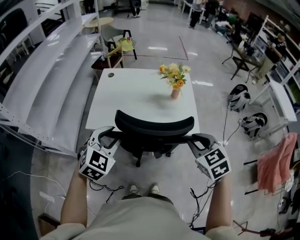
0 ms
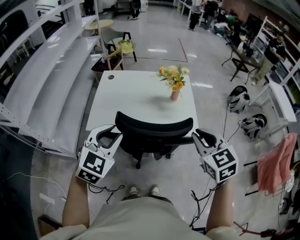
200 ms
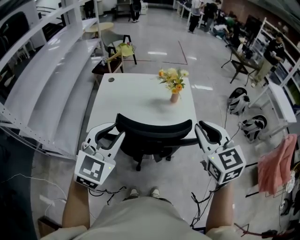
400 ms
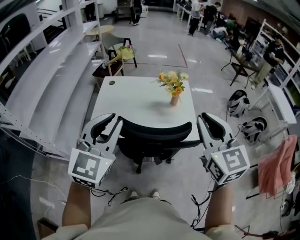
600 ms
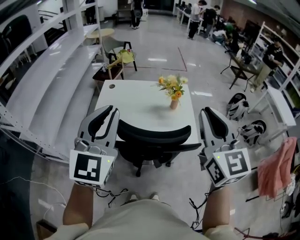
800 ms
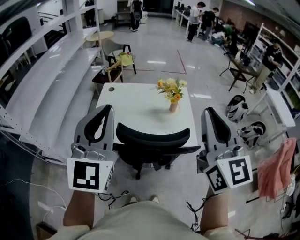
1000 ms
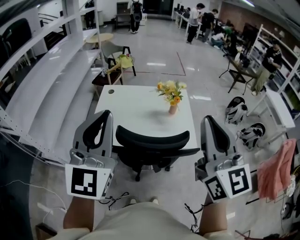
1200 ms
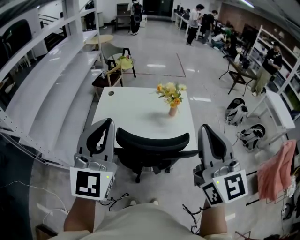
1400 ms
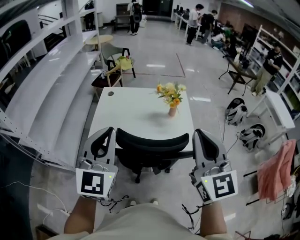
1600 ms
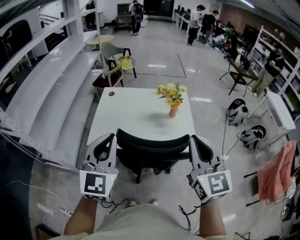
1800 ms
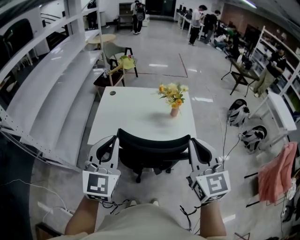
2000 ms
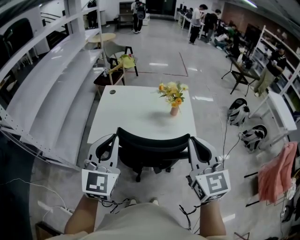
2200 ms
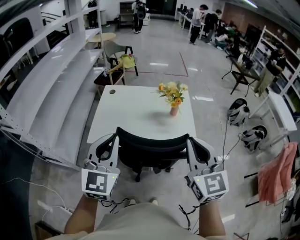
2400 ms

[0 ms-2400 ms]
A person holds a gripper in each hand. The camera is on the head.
0 ms to 1200 ms: The grippers both shift upward by roughly 25 cm. The right gripper points its fingers about 50 degrees further upward. The left gripper tips its fingers upward by about 40 degrees, and closes.
1200 ms to 2400 ms: Both grippers move downward, approximately 10 cm.

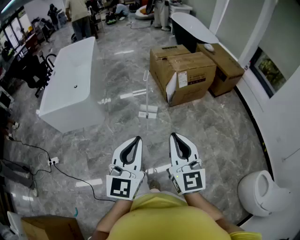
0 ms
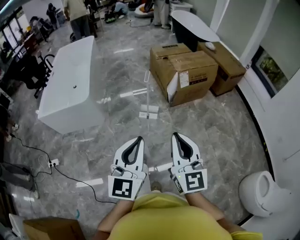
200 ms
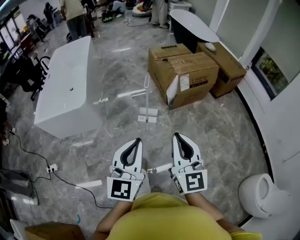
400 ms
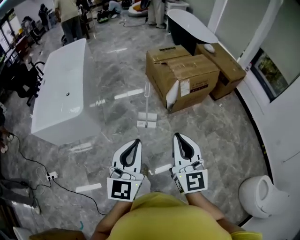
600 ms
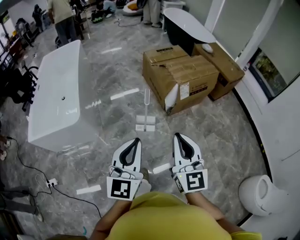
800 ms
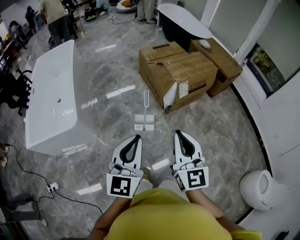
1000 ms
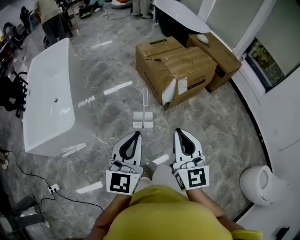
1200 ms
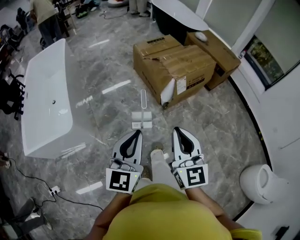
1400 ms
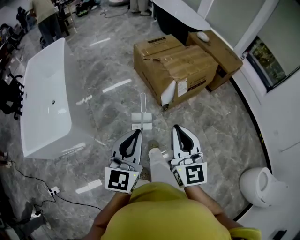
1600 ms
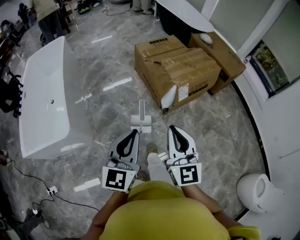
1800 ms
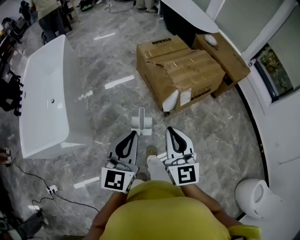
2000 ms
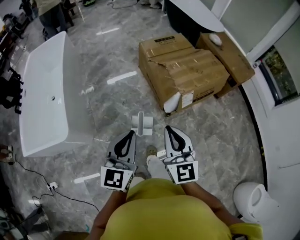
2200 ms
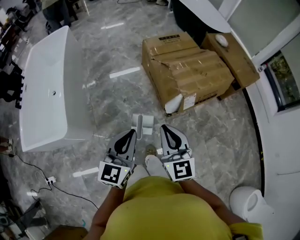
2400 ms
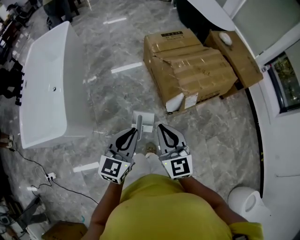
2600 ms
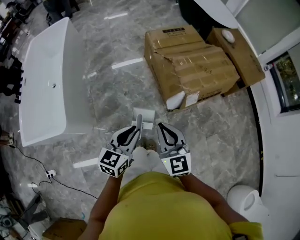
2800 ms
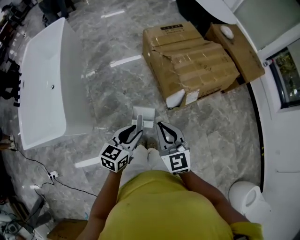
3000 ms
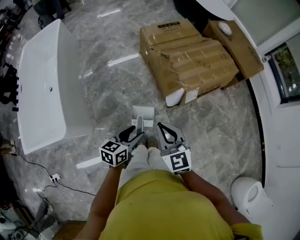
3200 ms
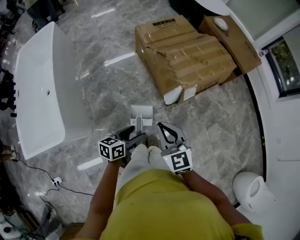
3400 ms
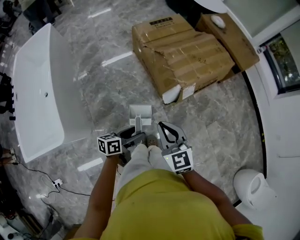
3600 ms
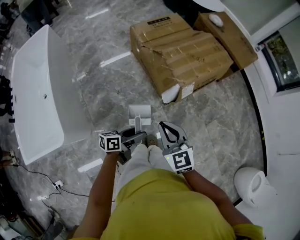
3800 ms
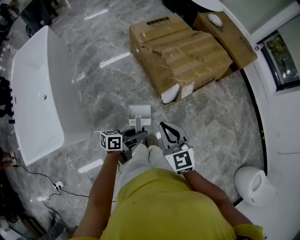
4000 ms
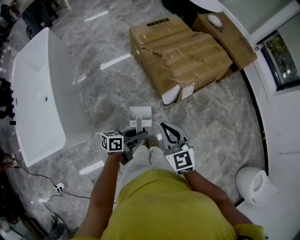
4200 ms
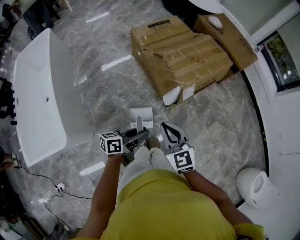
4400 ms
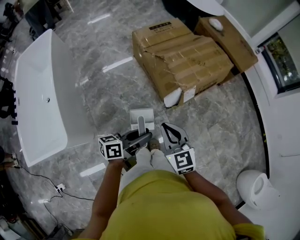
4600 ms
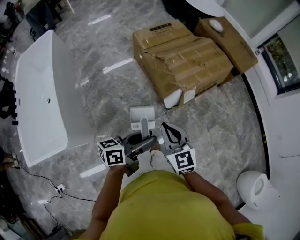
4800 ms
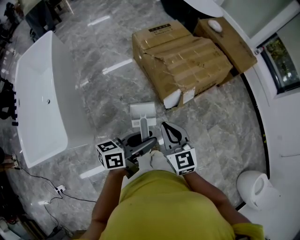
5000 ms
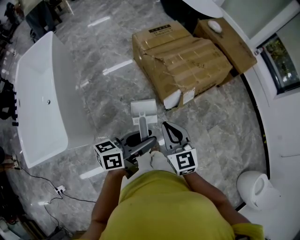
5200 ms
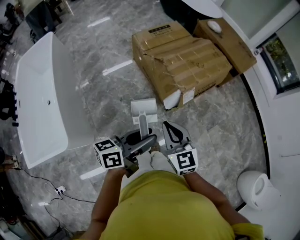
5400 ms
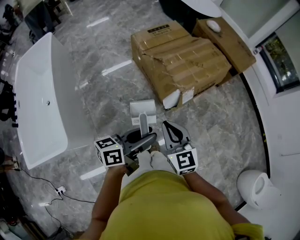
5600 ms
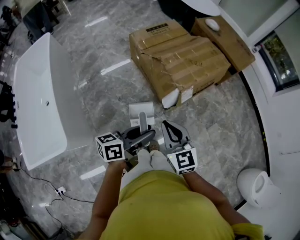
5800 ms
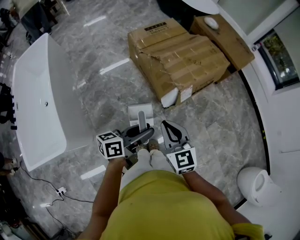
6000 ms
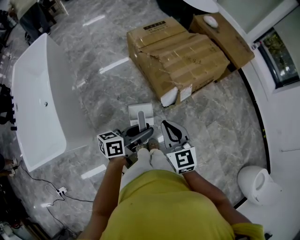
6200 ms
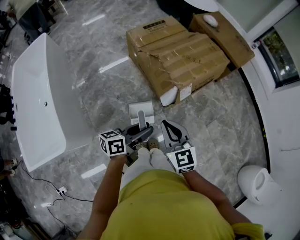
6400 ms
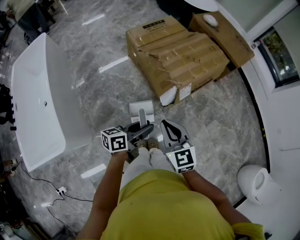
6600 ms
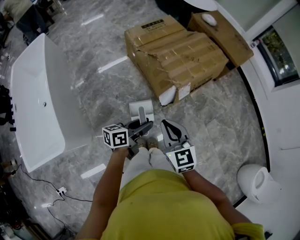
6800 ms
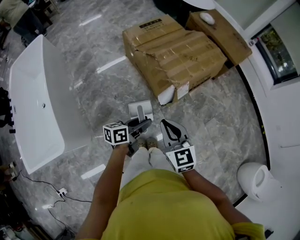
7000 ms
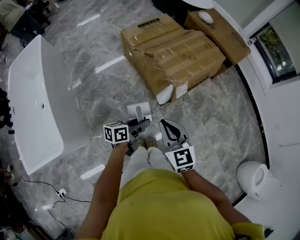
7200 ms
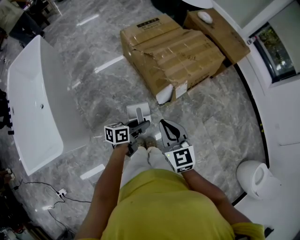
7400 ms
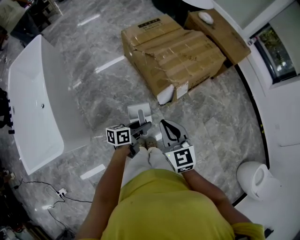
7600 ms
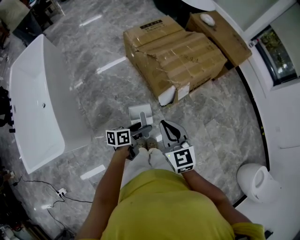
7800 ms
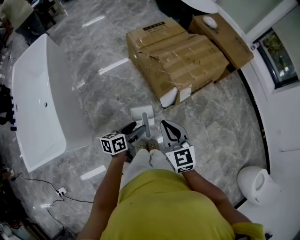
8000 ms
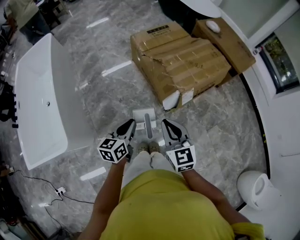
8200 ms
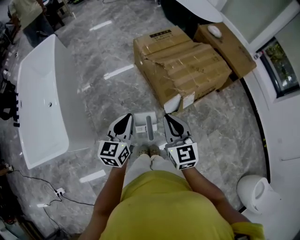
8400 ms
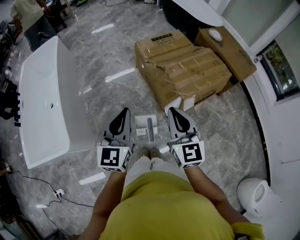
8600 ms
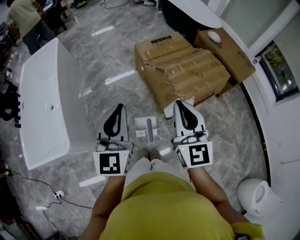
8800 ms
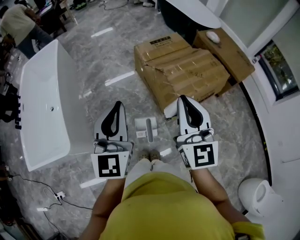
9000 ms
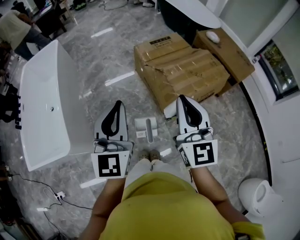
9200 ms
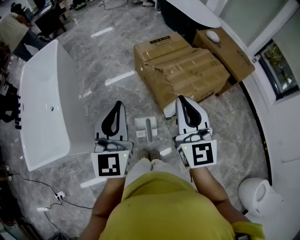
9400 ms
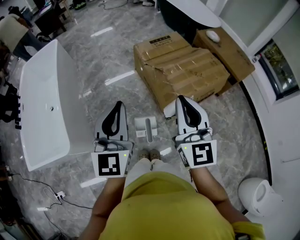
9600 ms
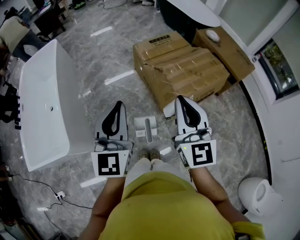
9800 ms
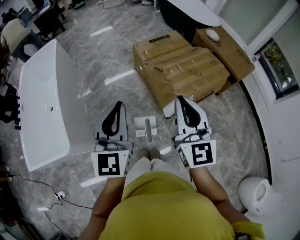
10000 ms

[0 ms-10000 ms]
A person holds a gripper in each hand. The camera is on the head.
0 ms to 1400 ms: Both grippers travel together forward, some 35 cm.
1400 ms to 2800 ms: The two grippers go some 30 cm forward and downward. The left gripper rotates roughly 30 degrees, while the right gripper turns by some 20 degrees.
2800 ms to 4200 ms: The left gripper moves downward, some 10 cm, swivels approximately 50 degrees, and opens, then closes once more.
4200 ms to 5800 ms: The left gripper shifts approximately 15 cm upward.
5800 ms to 7200 ms: The left gripper travels downward by some 15 cm.
7200 ms to 8600 ms: The left gripper goes some 25 cm upward and to the left, changes its angle by about 70 degrees, and closes. The right gripper goes some 10 cm upward.
8600 ms to 10000 ms: The two grippers go about 10 cm upward.

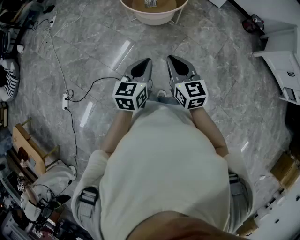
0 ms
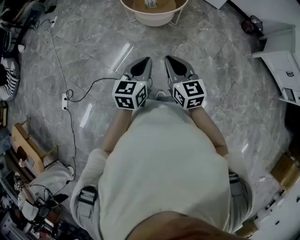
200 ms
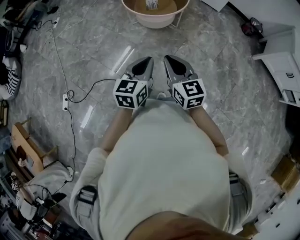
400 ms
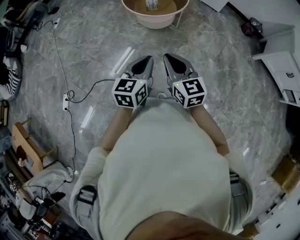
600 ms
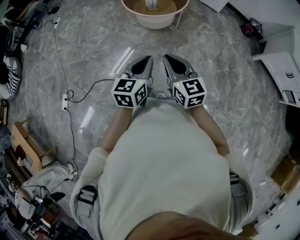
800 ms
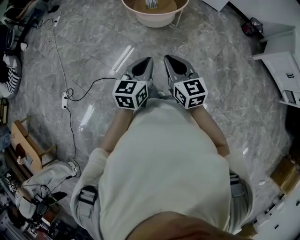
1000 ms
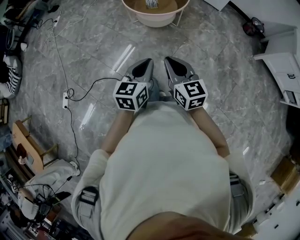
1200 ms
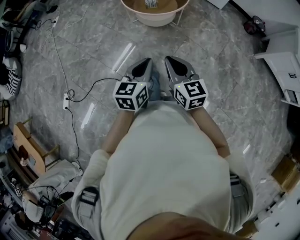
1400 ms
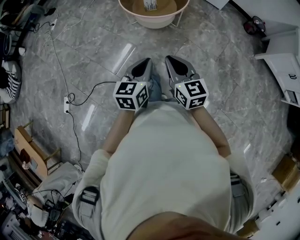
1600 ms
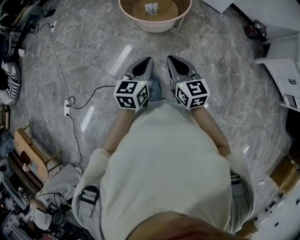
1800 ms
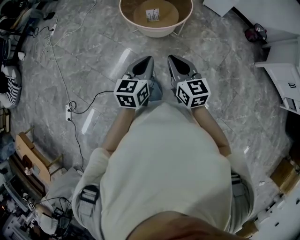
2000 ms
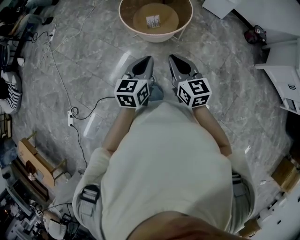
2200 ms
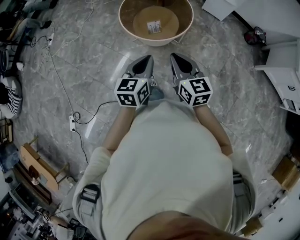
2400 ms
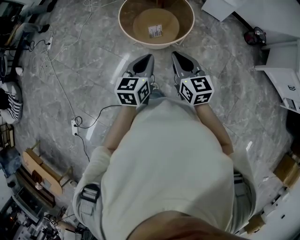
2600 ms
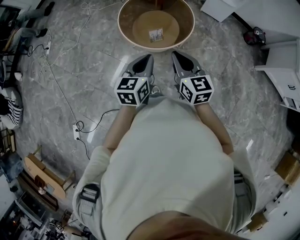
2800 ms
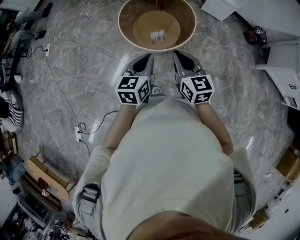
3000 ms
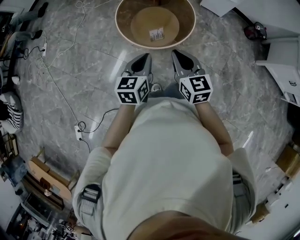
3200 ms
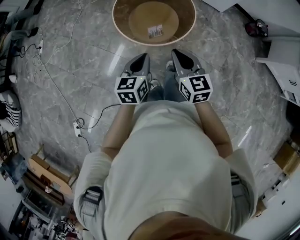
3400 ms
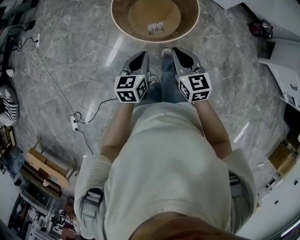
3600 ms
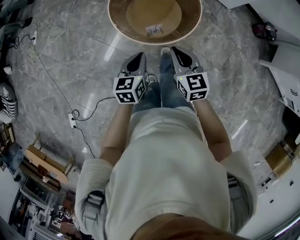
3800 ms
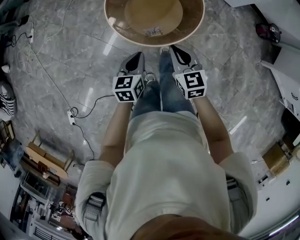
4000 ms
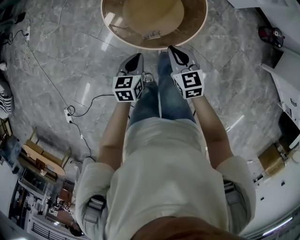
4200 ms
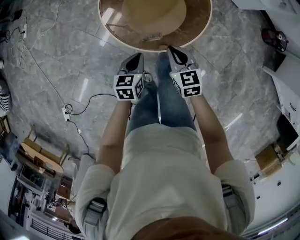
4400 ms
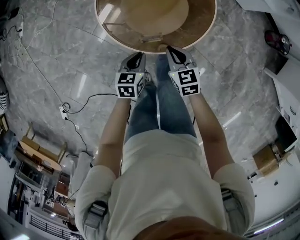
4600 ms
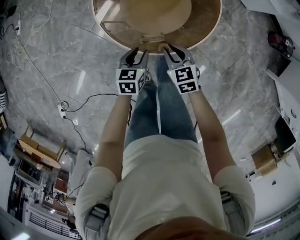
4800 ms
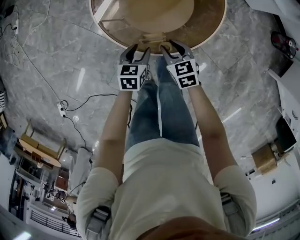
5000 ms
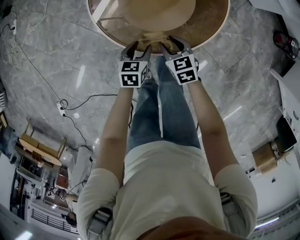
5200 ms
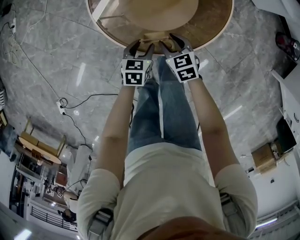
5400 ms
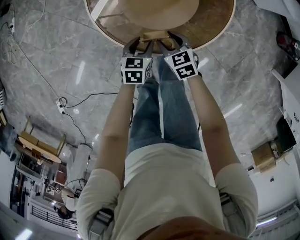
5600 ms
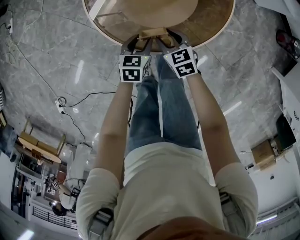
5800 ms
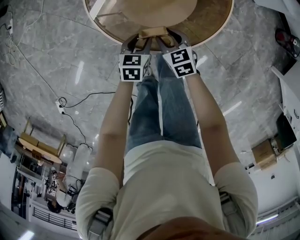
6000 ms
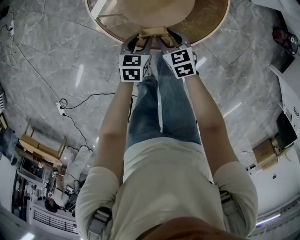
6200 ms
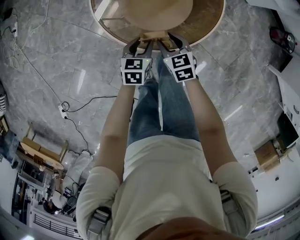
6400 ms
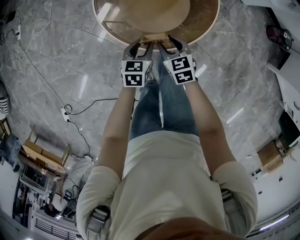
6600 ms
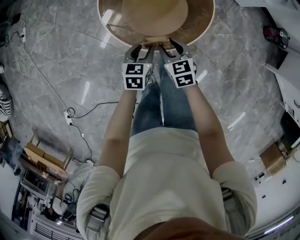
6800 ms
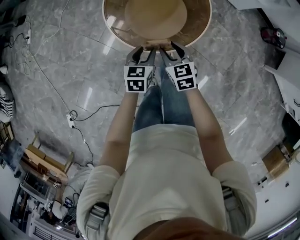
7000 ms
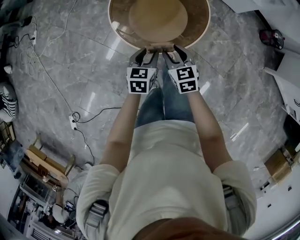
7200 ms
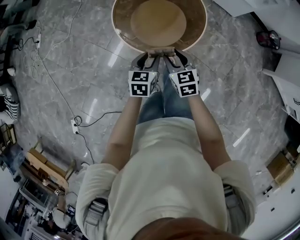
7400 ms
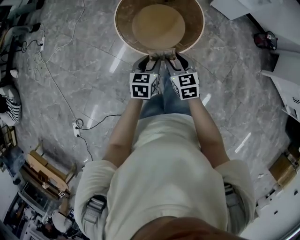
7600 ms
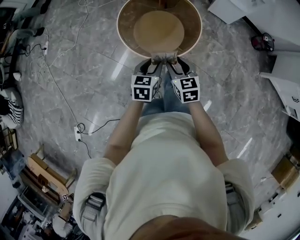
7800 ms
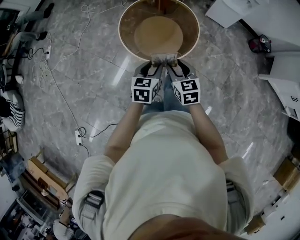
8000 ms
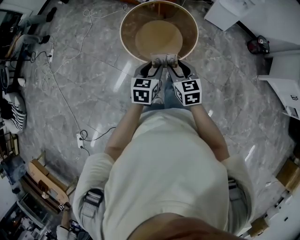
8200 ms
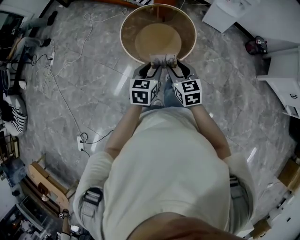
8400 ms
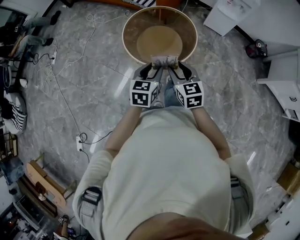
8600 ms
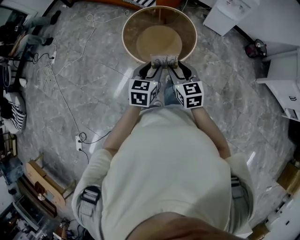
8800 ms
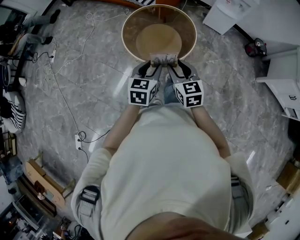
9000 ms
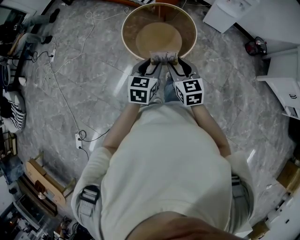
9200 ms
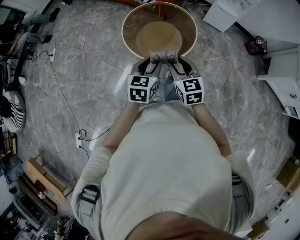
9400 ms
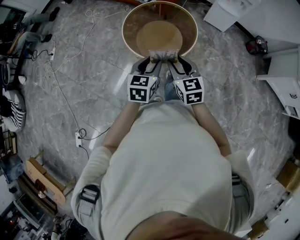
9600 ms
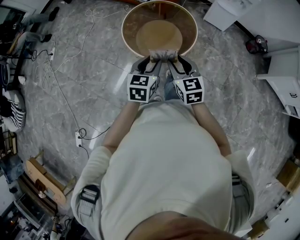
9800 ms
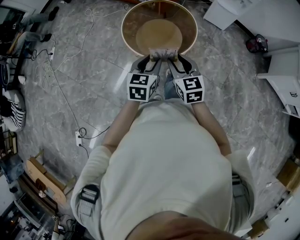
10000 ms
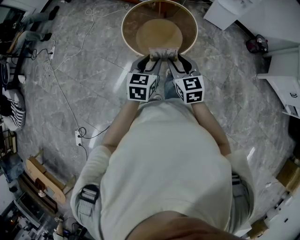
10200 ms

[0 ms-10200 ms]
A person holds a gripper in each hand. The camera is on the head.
0 ms to 1400 ms: The grippers make only small movements.
1400 ms to 3000 ms: Both grippers move forward, roughly 35 cm.
3000 ms to 4400 ms: Both grippers travel together downward and forward, approximately 30 cm. The left gripper turns by about 20 degrees. The right gripper turns by approximately 20 degrees.
4400 ms to 5800 ms: Both grippers move downward, about 20 cm. The right gripper opens its fingers. The left gripper opens up.
5800 ms to 7200 ms: Both grippers move upward, approximately 20 cm.
7200 ms to 8800 ms: The grippers both shift upward and backward by some 20 cm.
8800 ms to 10200 ms: The two grippers keep their place.

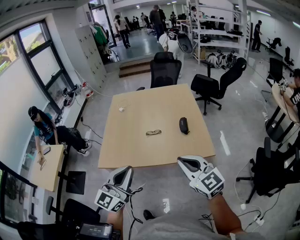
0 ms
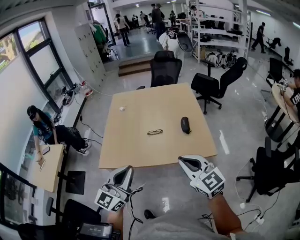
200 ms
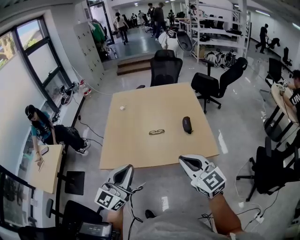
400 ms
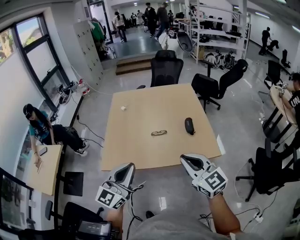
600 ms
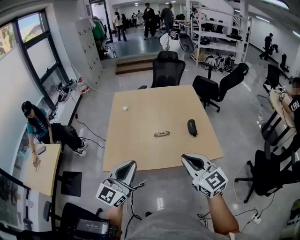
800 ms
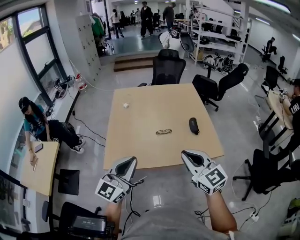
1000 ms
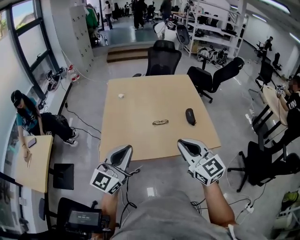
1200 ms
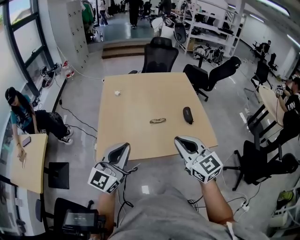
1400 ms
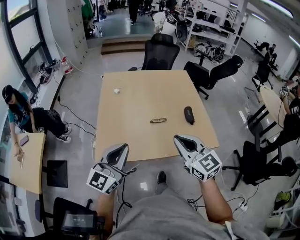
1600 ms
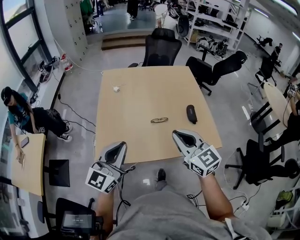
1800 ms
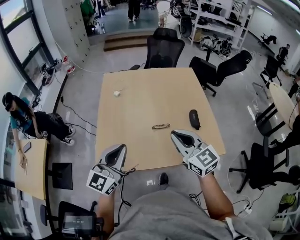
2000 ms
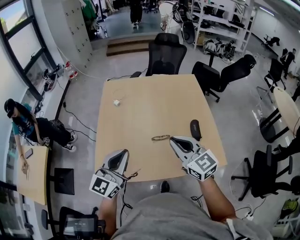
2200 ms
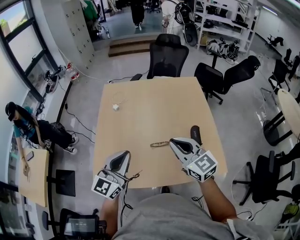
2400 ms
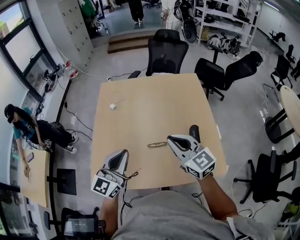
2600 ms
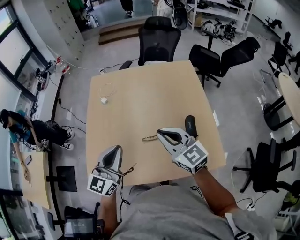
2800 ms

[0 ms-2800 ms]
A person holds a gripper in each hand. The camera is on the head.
0 ms to 1400 ms: Both grippers travel together to the left and forward, approximately 25 cm.
1400 ms to 2800 ms: The left gripper is displaced forward and to the right by roughly 30 cm. Meanwhile the right gripper heads forward, covering about 30 cm.
